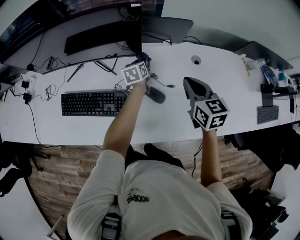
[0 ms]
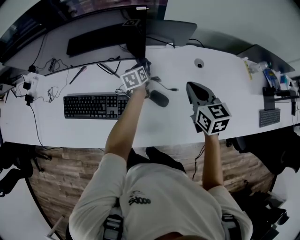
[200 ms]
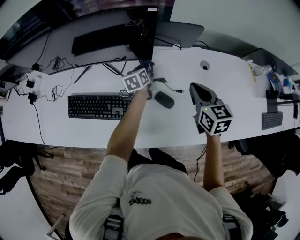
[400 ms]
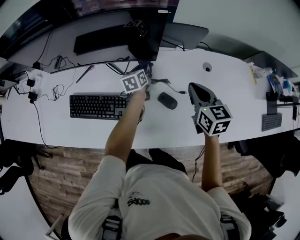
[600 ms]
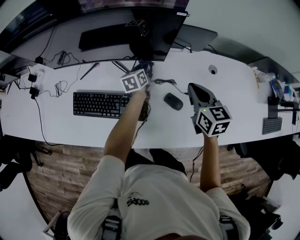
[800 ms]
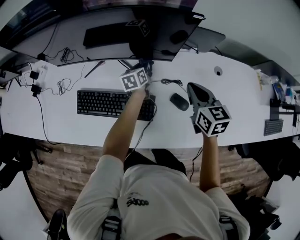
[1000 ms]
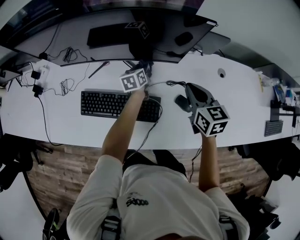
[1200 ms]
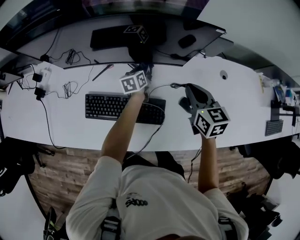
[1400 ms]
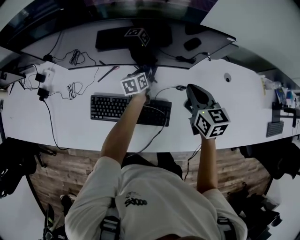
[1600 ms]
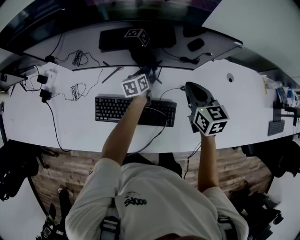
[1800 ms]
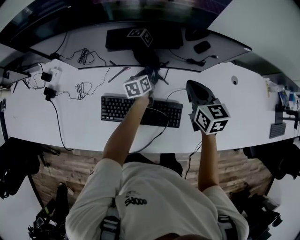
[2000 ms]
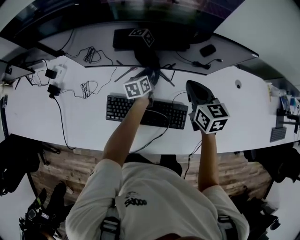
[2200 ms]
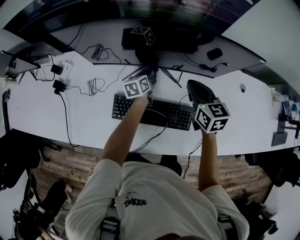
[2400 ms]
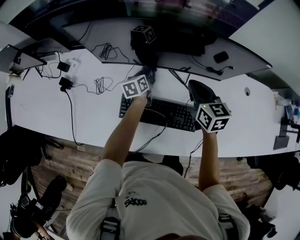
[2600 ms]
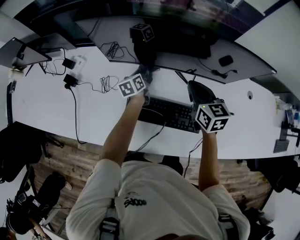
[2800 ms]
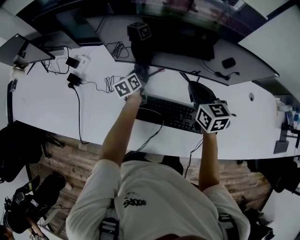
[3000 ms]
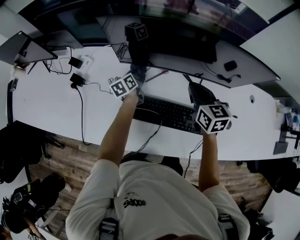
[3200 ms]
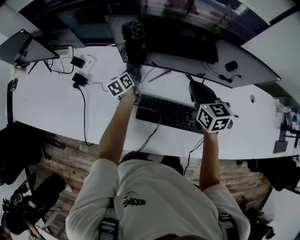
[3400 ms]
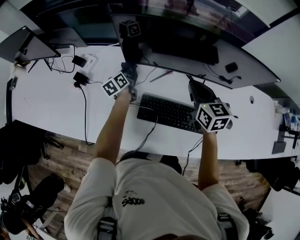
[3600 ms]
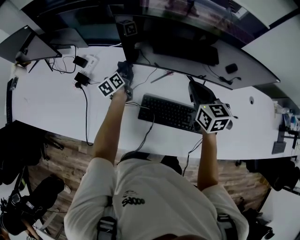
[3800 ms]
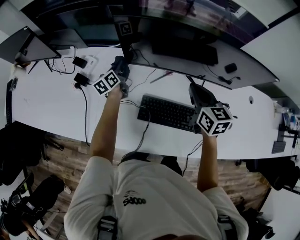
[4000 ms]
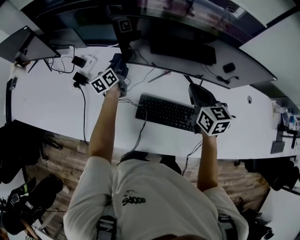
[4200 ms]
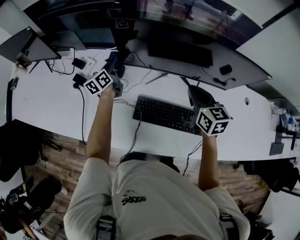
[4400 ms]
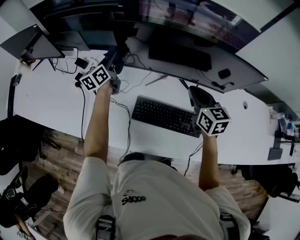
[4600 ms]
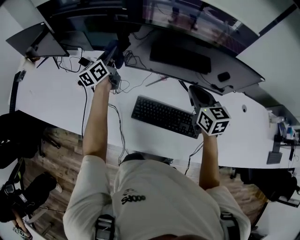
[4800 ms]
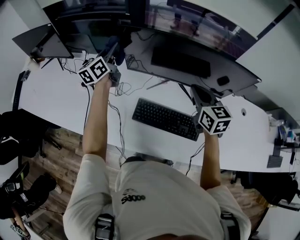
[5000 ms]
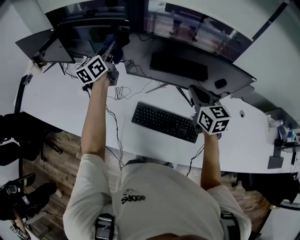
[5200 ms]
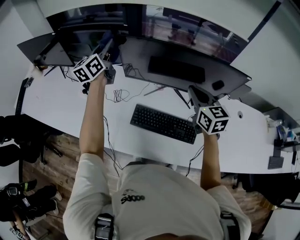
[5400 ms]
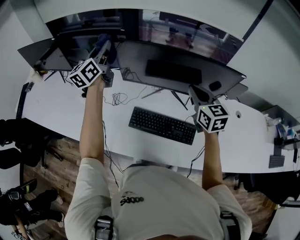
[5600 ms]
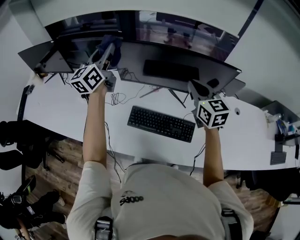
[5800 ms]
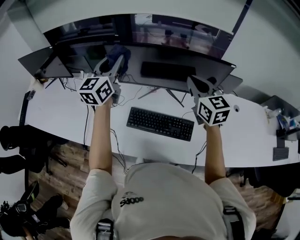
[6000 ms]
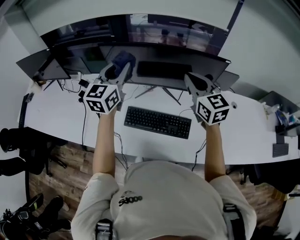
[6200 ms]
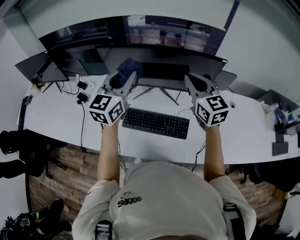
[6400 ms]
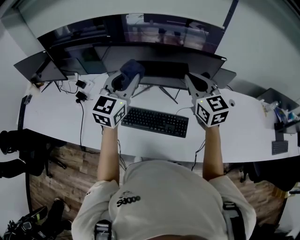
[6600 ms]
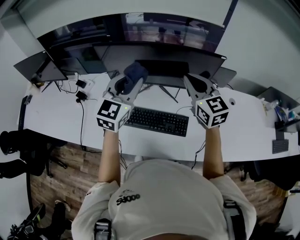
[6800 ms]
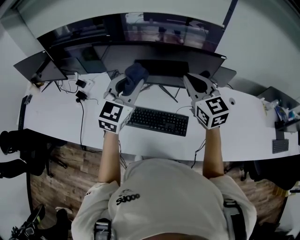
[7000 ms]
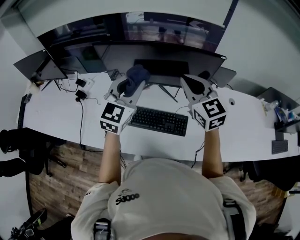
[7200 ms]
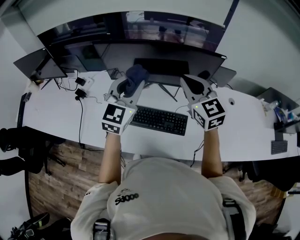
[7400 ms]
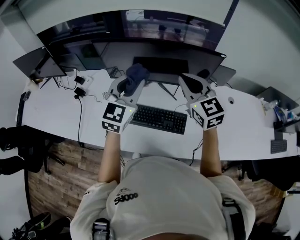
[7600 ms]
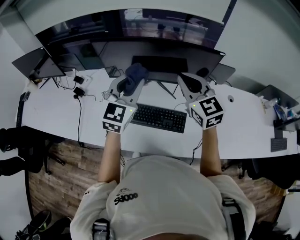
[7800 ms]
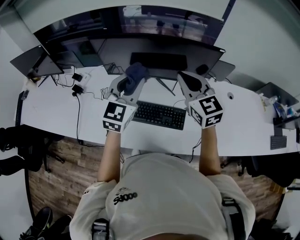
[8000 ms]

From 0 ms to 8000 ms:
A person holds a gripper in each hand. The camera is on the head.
From 0 ms to 1600 ms: Both grippers move to the left, roughly 20 cm.
From 1600 ms to 3200 ms: The two grippers go about 30 cm to the left.
From 3200 ms to 4800 ms: The right gripper travels upward by approximately 5 cm, while the left gripper is displaced upward and to the left by about 25 cm, and changes its angle by approximately 30 degrees.
From 4800 ms to 6400 ms: The right gripper travels upward, to the right and backward by roughly 20 cm, and swivels roughly 20 degrees. Meanwhile the left gripper shifts some 35 cm backward, to the right and upward, and turns by roughly 40 degrees.
From 6400 ms to 8000 ms: The left gripper shifts some 5 cm to the right.

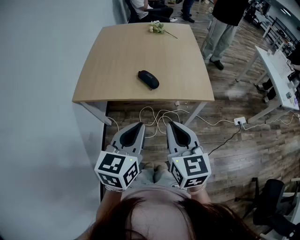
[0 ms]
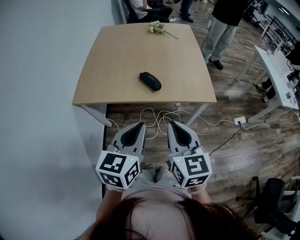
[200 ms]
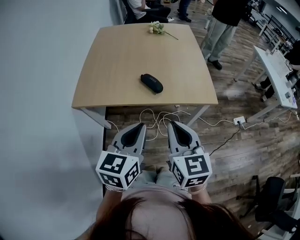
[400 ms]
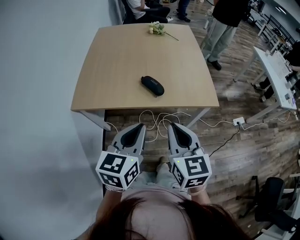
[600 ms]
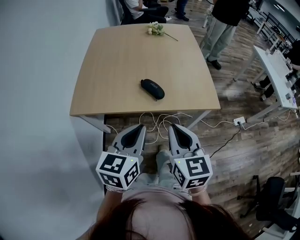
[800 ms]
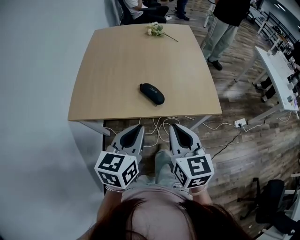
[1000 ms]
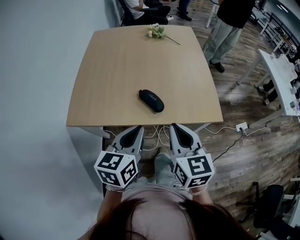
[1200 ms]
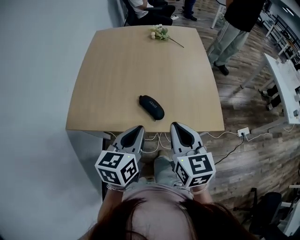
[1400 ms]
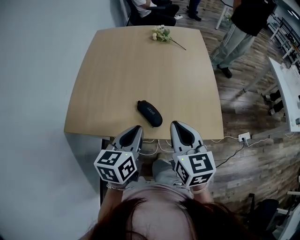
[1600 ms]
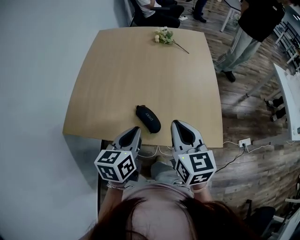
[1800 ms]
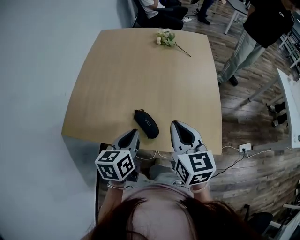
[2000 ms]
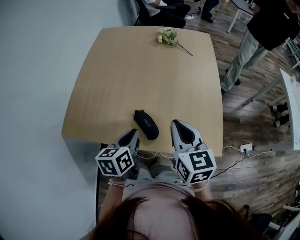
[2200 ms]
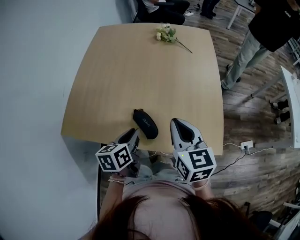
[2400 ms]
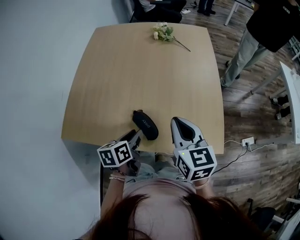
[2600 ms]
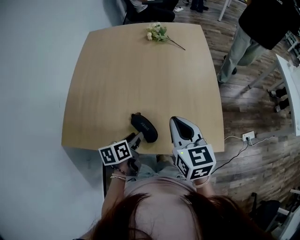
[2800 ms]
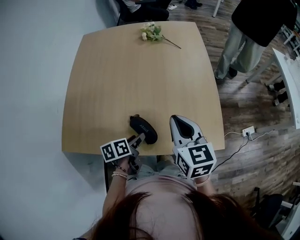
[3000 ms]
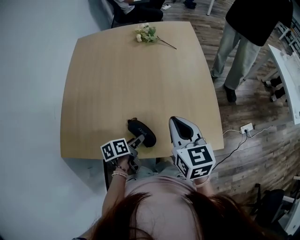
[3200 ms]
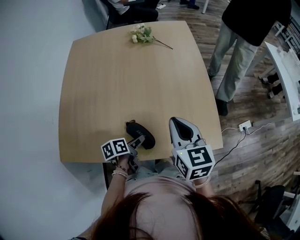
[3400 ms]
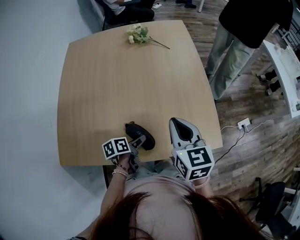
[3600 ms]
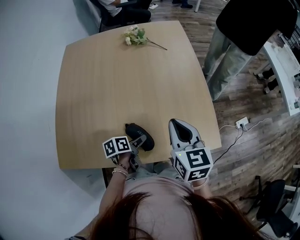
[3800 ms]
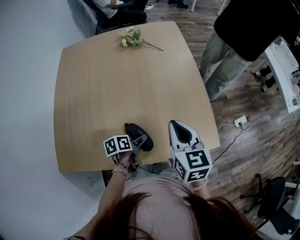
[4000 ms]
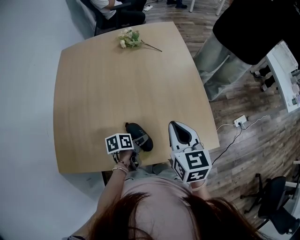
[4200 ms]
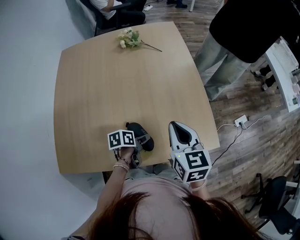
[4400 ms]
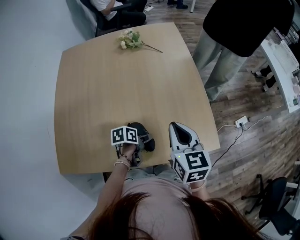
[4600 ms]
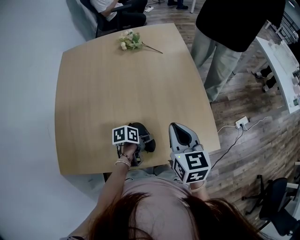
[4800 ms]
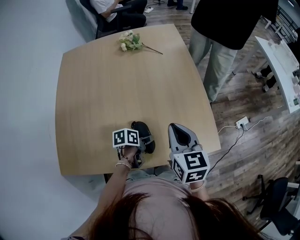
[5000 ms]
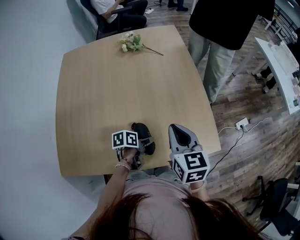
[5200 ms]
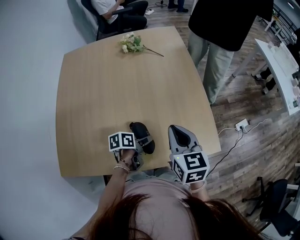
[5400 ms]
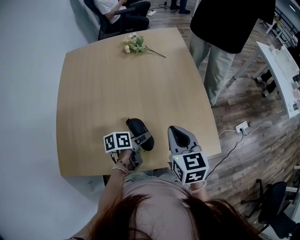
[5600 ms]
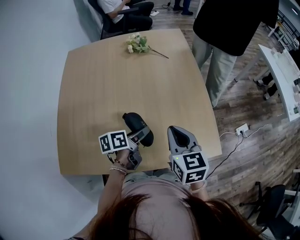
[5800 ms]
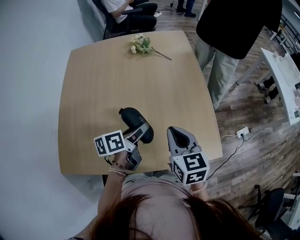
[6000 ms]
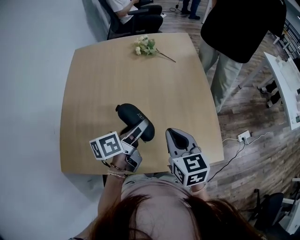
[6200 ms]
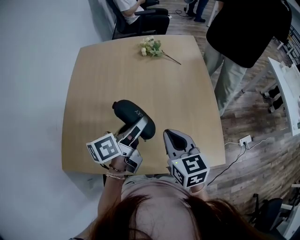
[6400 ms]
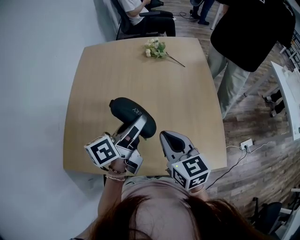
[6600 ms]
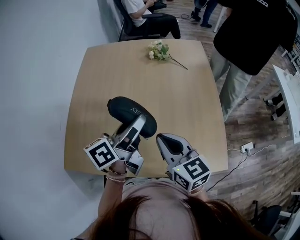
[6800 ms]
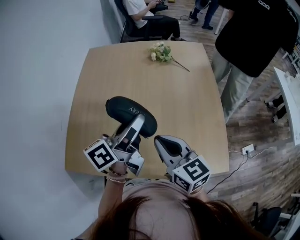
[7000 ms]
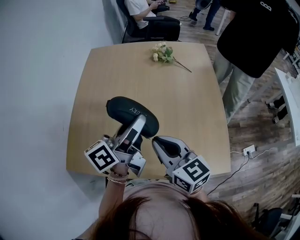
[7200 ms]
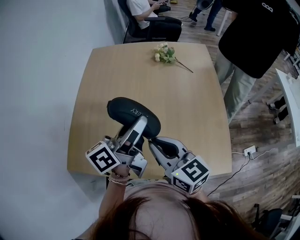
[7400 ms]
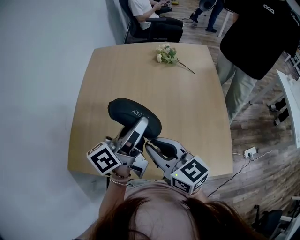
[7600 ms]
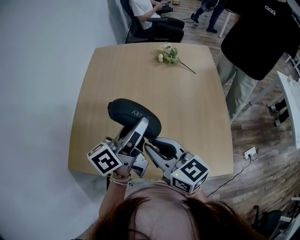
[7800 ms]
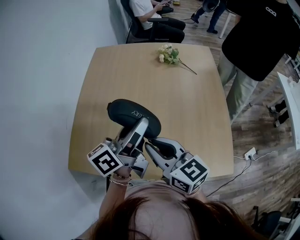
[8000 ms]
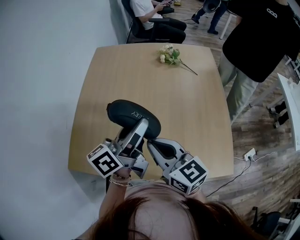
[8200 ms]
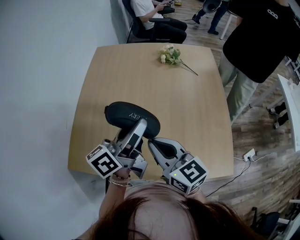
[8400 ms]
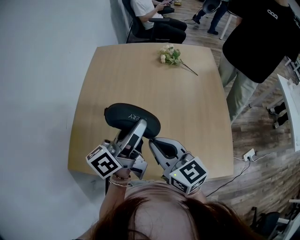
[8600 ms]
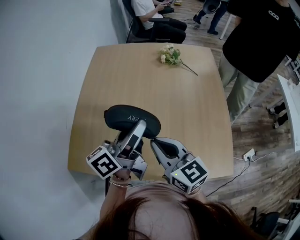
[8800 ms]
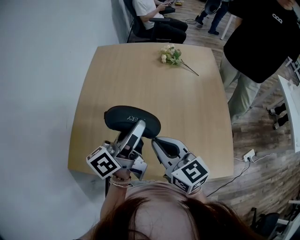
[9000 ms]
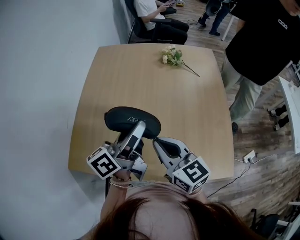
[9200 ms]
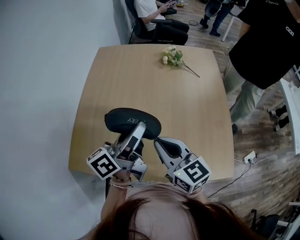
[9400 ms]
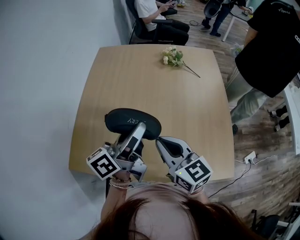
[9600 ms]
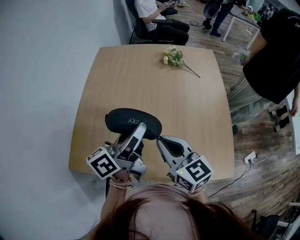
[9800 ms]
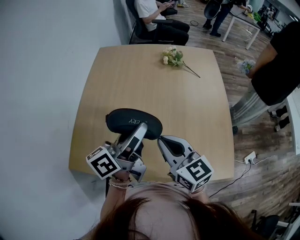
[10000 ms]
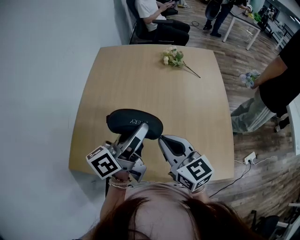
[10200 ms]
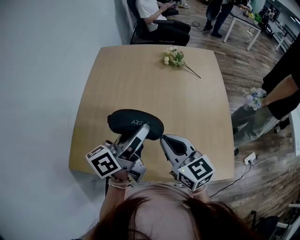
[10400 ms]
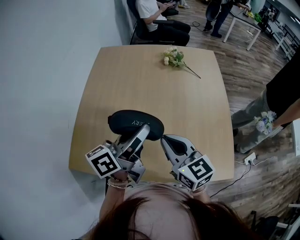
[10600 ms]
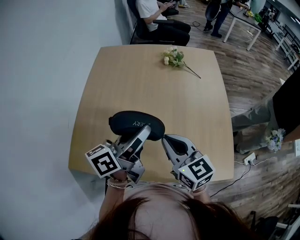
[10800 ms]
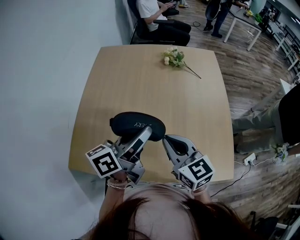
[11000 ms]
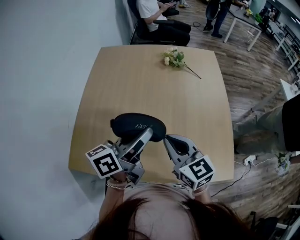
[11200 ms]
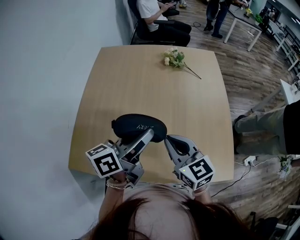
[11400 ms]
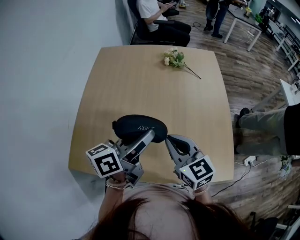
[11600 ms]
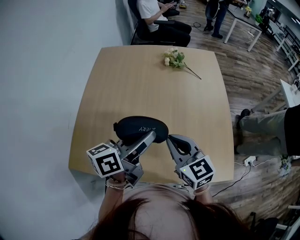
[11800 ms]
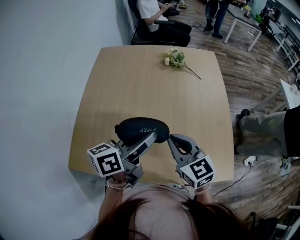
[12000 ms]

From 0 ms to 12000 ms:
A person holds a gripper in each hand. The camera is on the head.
From 0 ms to 1600 ms: Both grippers travel together forward, roughly 25 cm.
From 1600 ms to 3000 ms: The right gripper heads forward, covering about 15 cm, while the left gripper goes some 20 cm downward and forward, turns by some 40 degrees, and opens.
From 3000 ms to 4400 ms: The left gripper goes some 5 cm forward, and changes its angle by approximately 20 degrees.
From 4400 ms to 6000 ms: The left gripper travels upward by some 15 cm, and swivels roughly 30 degrees.
From 6000 ms to 7600 ms: The left gripper moves upward and to the left, approximately 20 cm, and points its fingers some 30 degrees further upward; the right gripper goes roughly 15 cm to the left, and turns by some 40 degrees.
From 7600 ms to 10400 ms: The grippers stay close to where they were, moving slightly.
From 10400 ms to 12000 ms: The grippers stay close to where they were, moving slightly.

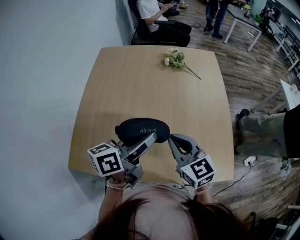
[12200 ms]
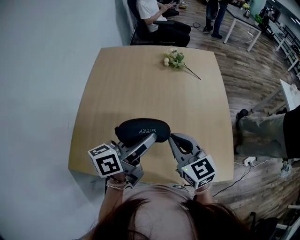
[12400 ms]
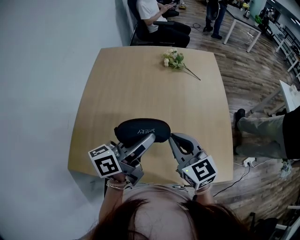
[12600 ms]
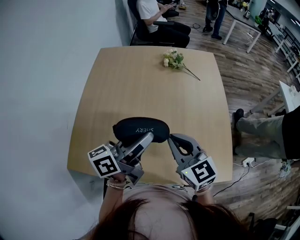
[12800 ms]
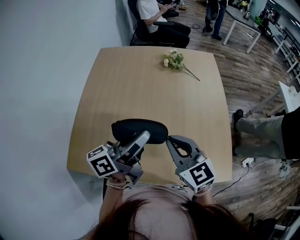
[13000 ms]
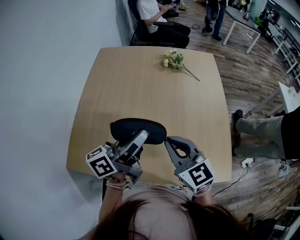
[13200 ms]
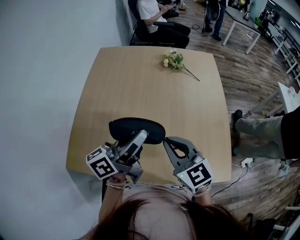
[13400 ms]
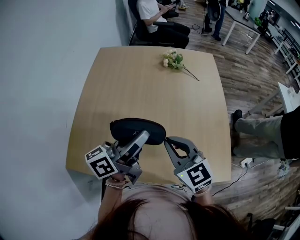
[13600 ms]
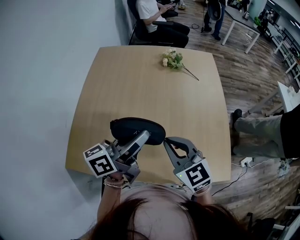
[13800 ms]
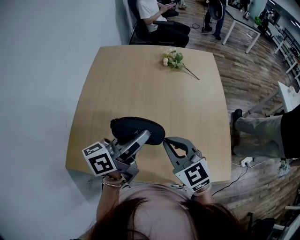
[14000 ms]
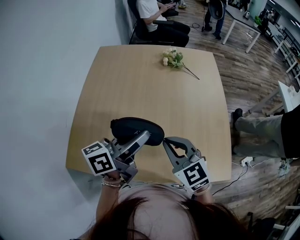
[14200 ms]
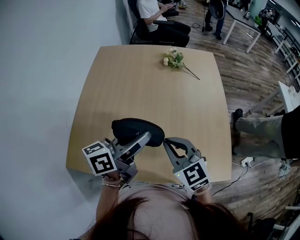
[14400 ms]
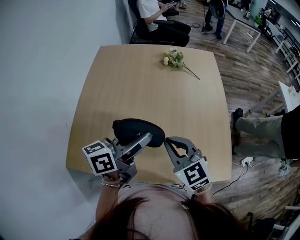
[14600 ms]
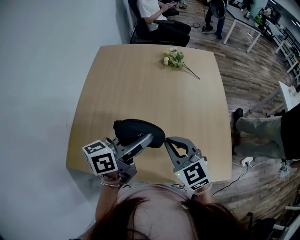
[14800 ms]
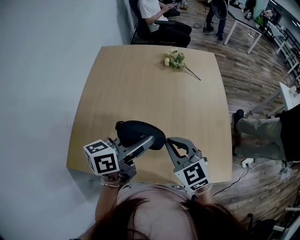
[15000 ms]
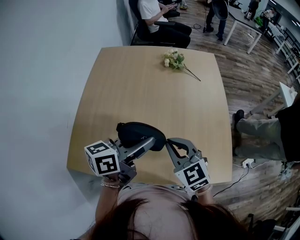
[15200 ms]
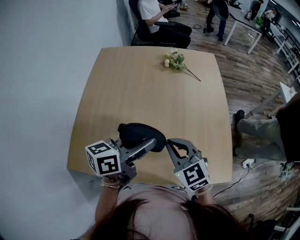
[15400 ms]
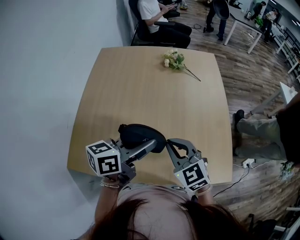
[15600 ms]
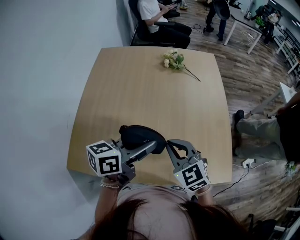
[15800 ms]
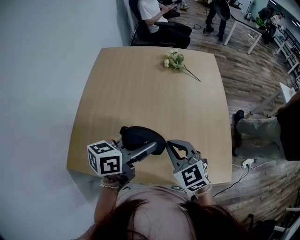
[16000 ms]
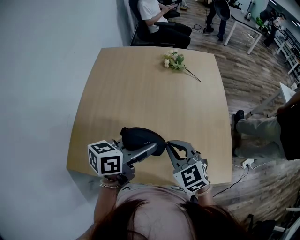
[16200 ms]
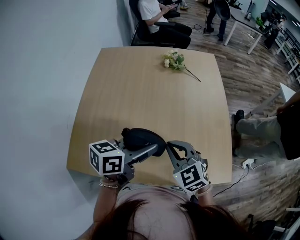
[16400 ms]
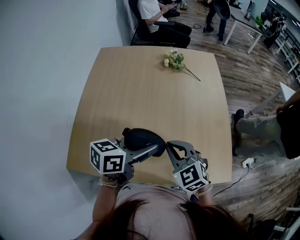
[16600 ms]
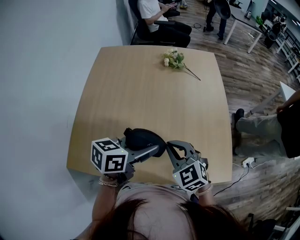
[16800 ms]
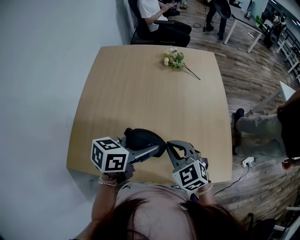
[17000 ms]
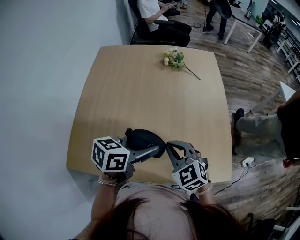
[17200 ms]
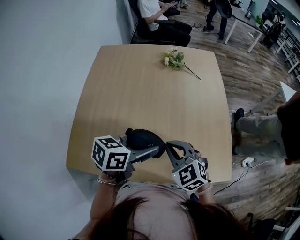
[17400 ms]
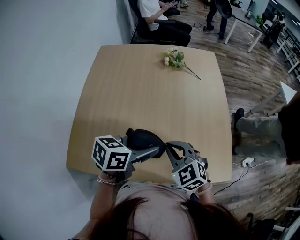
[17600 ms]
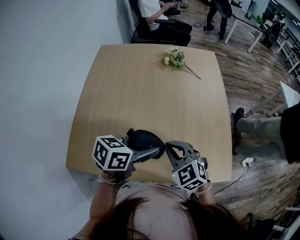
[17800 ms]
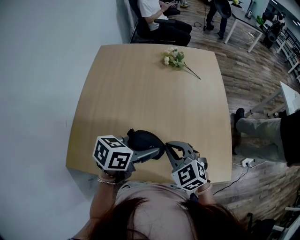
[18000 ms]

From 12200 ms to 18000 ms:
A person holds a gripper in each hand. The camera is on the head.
From 13600 ms to 15000 ms: The left gripper turns by about 20 degrees.
From 15000 ms to 16600 ms: The grippers make only small movements.
From 16600 ms to 18000 ms: The grippers make only small movements.
